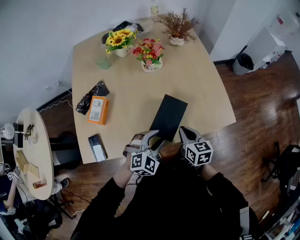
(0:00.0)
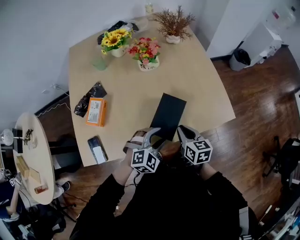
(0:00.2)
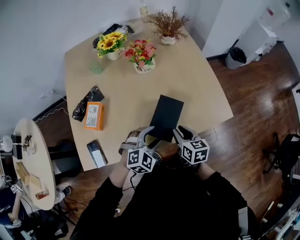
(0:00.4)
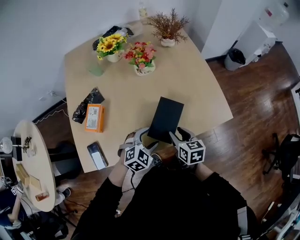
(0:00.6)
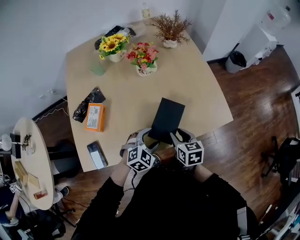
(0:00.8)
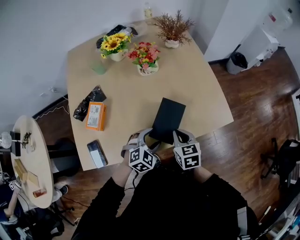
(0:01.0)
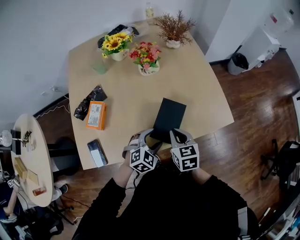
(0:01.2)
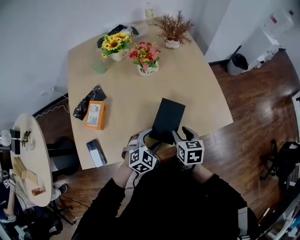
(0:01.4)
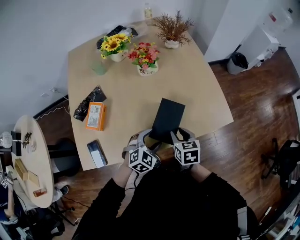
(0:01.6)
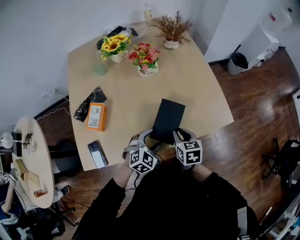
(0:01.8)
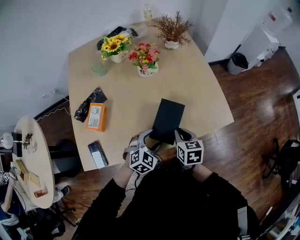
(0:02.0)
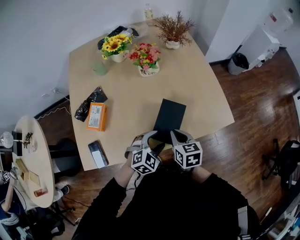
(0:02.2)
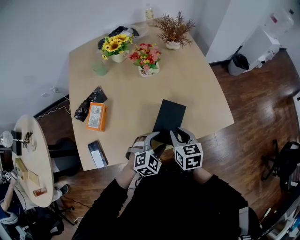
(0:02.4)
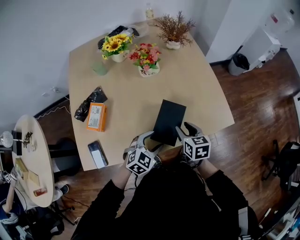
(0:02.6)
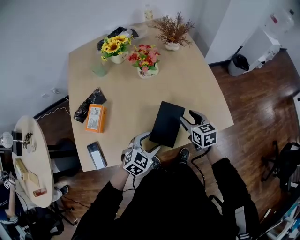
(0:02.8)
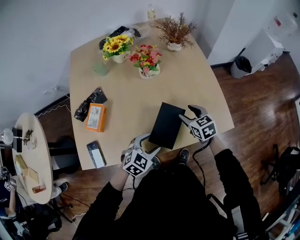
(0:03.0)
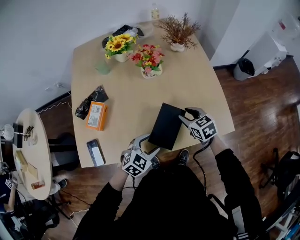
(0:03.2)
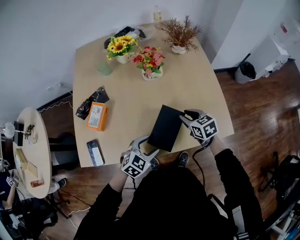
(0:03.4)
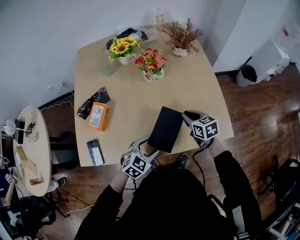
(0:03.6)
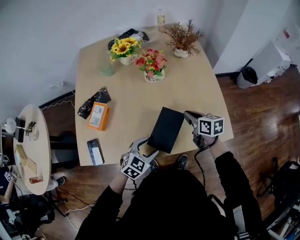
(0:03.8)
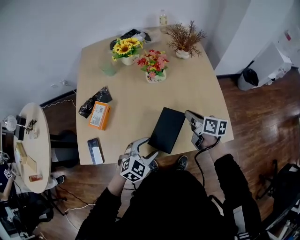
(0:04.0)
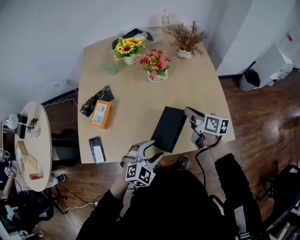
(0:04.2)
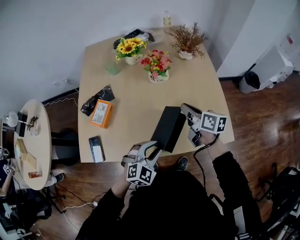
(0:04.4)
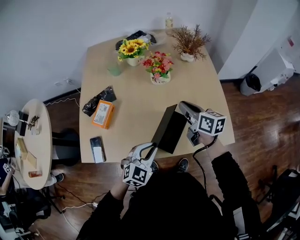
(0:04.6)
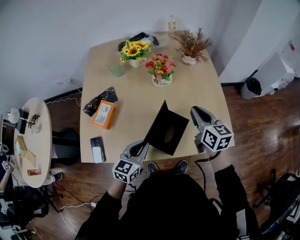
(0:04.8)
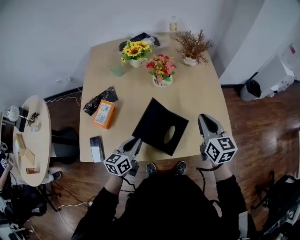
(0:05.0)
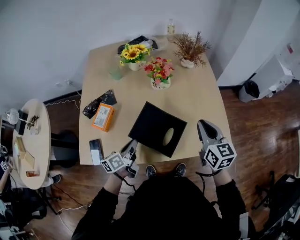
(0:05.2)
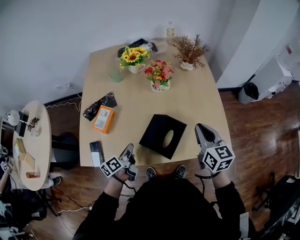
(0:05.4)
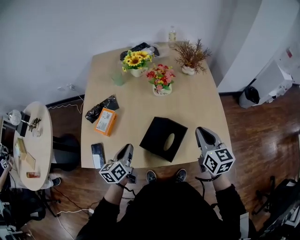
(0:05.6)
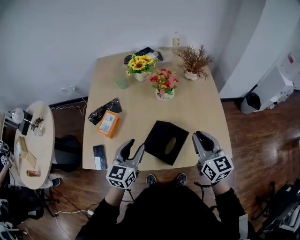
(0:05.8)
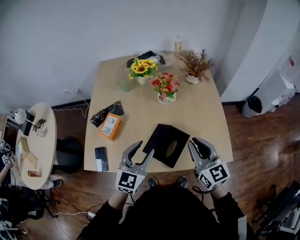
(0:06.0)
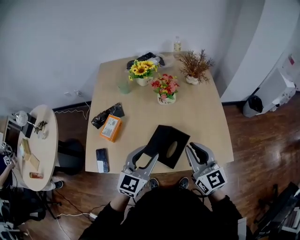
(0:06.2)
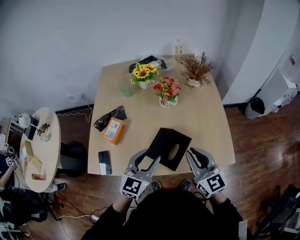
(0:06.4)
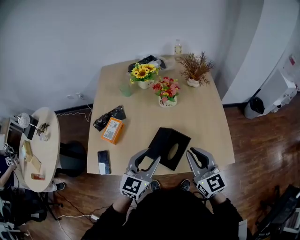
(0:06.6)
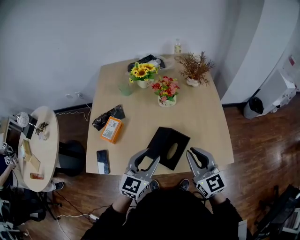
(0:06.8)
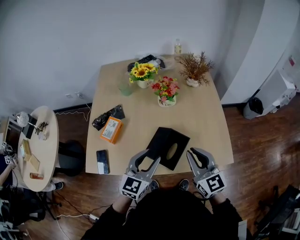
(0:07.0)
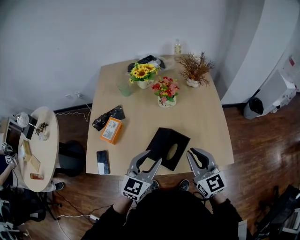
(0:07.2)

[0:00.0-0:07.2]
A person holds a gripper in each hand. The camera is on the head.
0:00.0 to 0:01.4: The left gripper opens; the right gripper opens.
0:01.4 to 0:02.8: The right gripper goes some 10 cm forward, and closes, then opens again.
0:02.8 to 0:04.4: The right gripper shifts some 10 cm upward and forward, rotates roughly 30 degrees, and closes up; the left gripper ends up roughly 5 cm from where it was, and closes.
0:04.4 to 0:05.8: The left gripper moves to the left, upward and forward, about 15 cm, twists approximately 40 degrees counterclockwise, seen from behind, and closes, then opens again, while the right gripper moves upward and backward, some 15 cm, and changes its angle by approximately 40 degrees.
0:05.8 to 0:07.2: The right gripper moves roughly 5 cm. Meanwhile the left gripper goes roughly 5 cm to the right.

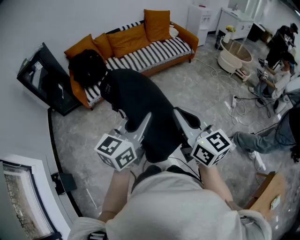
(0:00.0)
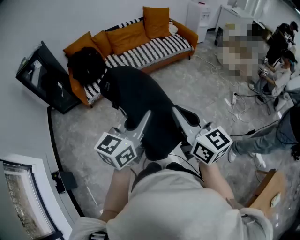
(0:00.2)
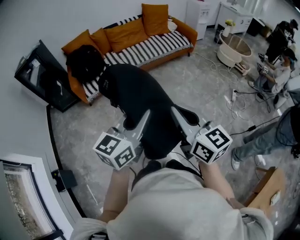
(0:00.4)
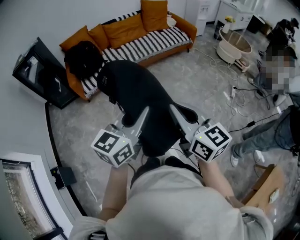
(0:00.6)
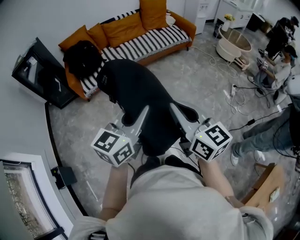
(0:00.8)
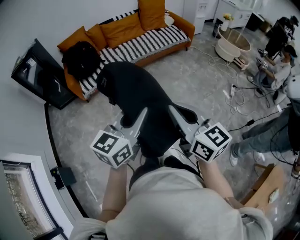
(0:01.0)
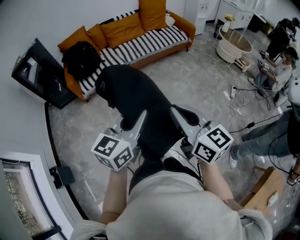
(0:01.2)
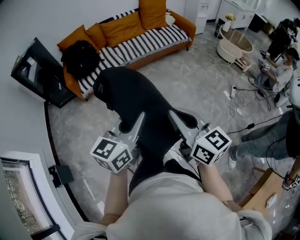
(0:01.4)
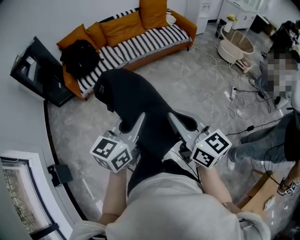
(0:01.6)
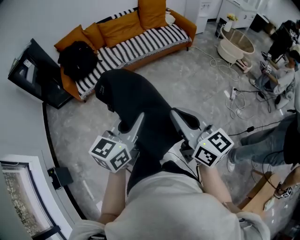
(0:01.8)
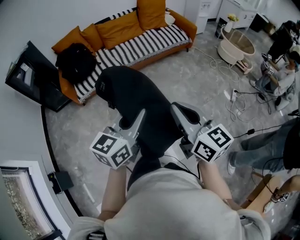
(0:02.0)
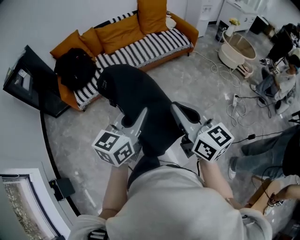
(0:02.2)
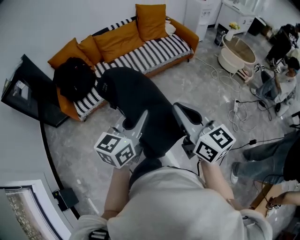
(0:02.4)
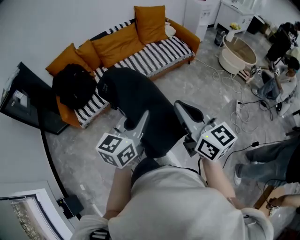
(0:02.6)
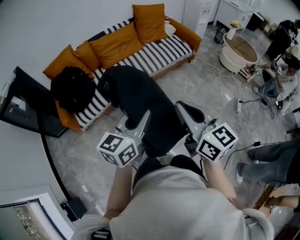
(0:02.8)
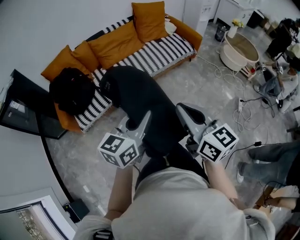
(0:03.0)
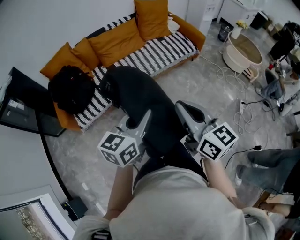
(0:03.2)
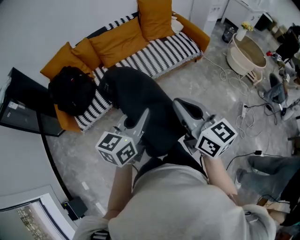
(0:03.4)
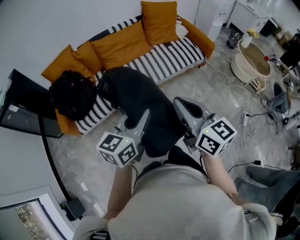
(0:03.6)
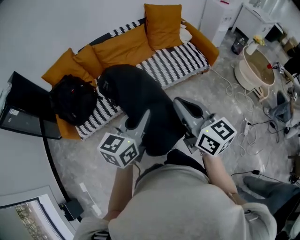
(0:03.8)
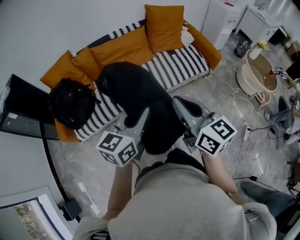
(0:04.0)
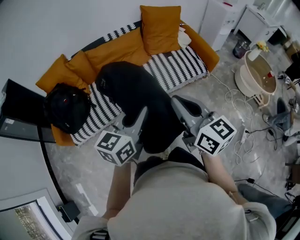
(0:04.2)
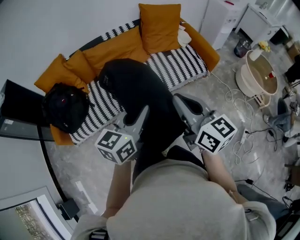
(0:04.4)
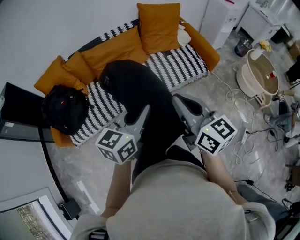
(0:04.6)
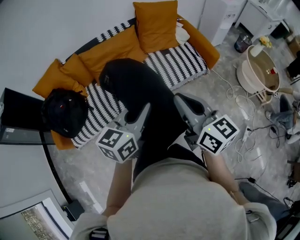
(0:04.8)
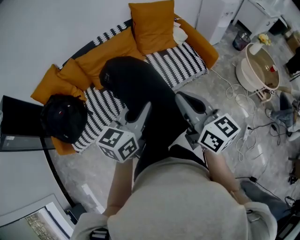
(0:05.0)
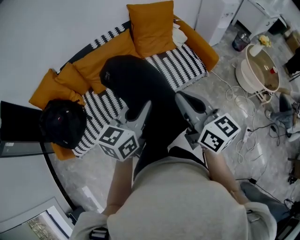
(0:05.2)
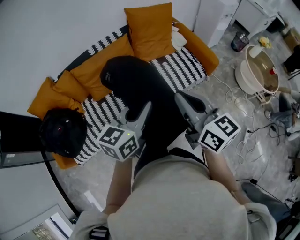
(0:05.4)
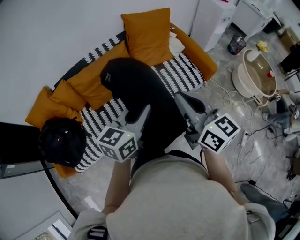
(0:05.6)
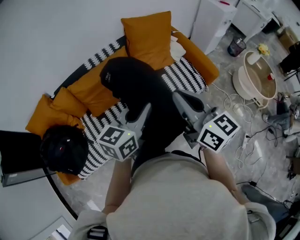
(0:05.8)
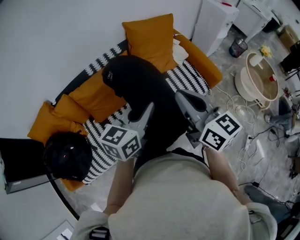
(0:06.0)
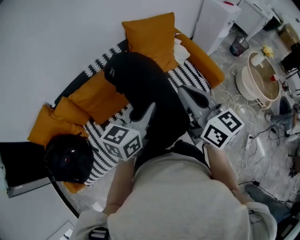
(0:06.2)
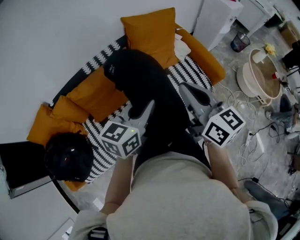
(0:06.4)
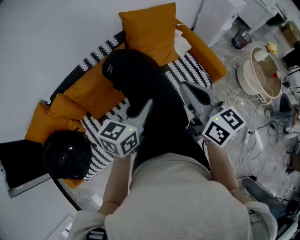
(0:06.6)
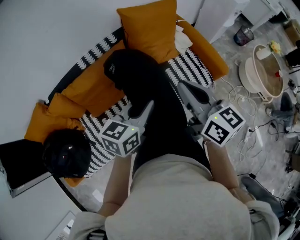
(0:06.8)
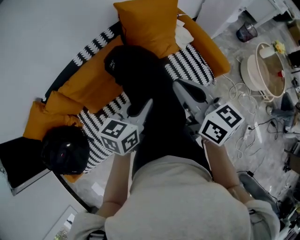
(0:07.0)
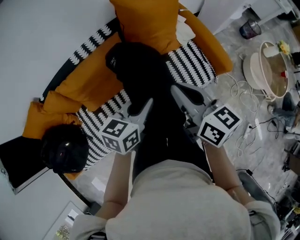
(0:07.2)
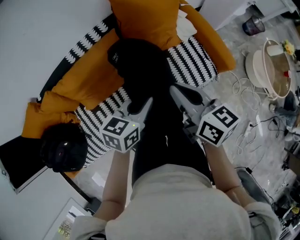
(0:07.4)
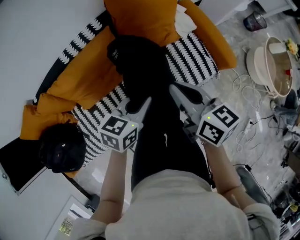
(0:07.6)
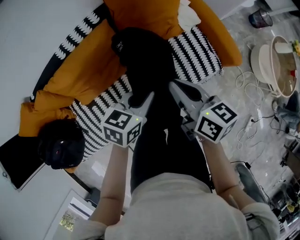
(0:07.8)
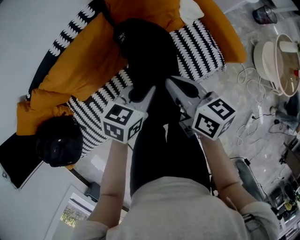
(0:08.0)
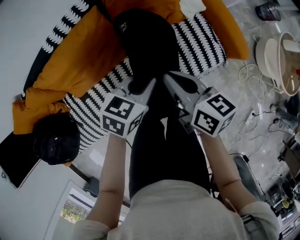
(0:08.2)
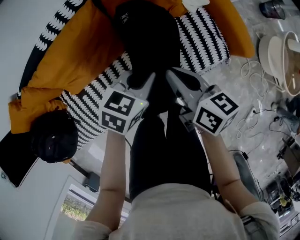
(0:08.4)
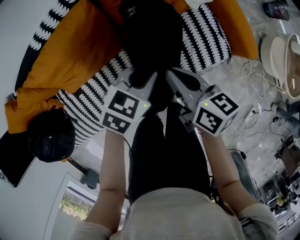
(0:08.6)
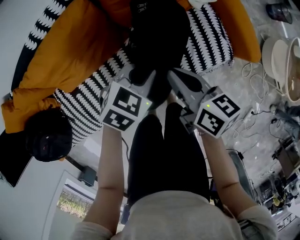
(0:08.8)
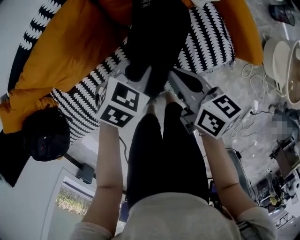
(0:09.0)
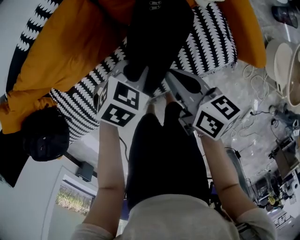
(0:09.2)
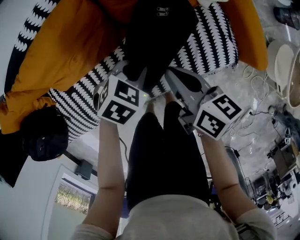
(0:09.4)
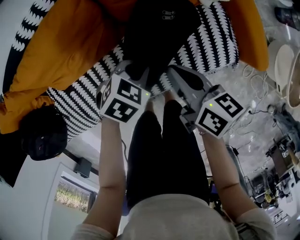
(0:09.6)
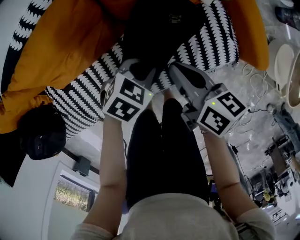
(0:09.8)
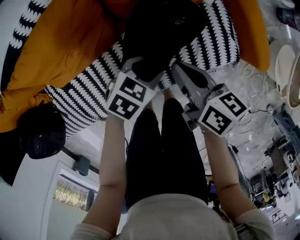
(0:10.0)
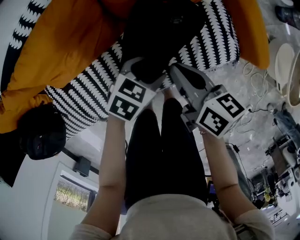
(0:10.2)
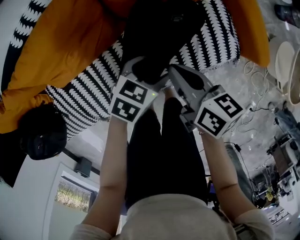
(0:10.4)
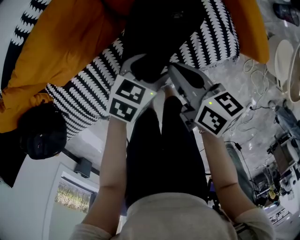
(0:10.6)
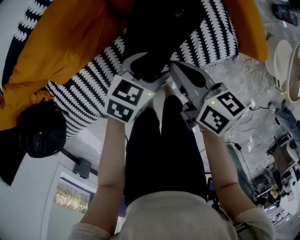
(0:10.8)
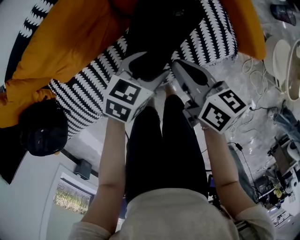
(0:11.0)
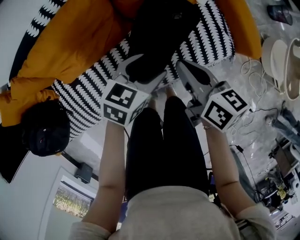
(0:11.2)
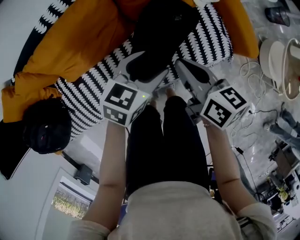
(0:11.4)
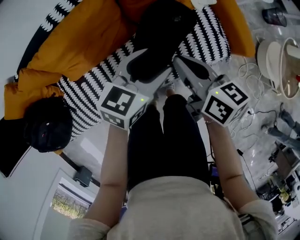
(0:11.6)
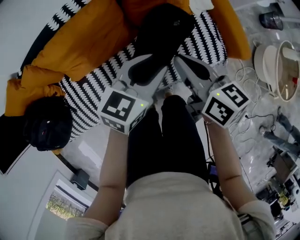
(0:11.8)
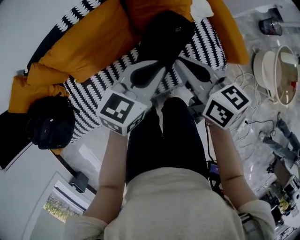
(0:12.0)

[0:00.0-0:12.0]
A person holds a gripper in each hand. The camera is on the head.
0:00.0 to 0:01.6: Both grippers move to the right, roughly 5 cm.
0:01.6 to 0:03.0: The two grippers travel together, forward, about 40 cm.
0:03.0 to 0:04.4: The pair of grippers is taken forward, about 40 cm.
0:04.4 to 0:06.0: The grippers both shift forward by roughly 35 cm.
0:06.0 to 0:07.6: The left gripper is displaced downward and forward by some 25 cm, and changes its angle by about 20 degrees. The right gripper heads forward and downward, covering approximately 25 cm, and changes its angle by approximately 20 degrees.
0:07.6 to 0:09.0: The right gripper moves downward, about 25 cm. The left gripper goes some 25 cm downward and forward, and turns by approximately 30 degrees.
0:09.0 to 0:10.4: The left gripper heads downward, covering about 5 cm, and opens its fingers.
0:10.4 to 0:12.0: The grippers both shift upward by approximately 30 cm. The left gripper rotates about 30 degrees, and closes its fingers, while the right gripper changes its angle by about 20 degrees.

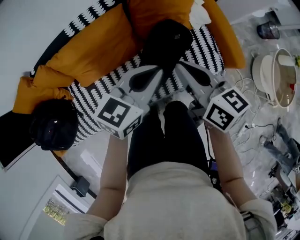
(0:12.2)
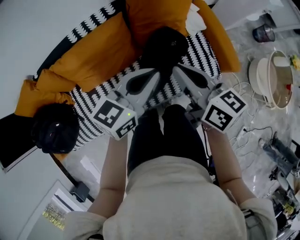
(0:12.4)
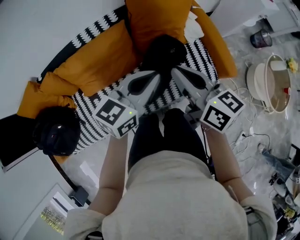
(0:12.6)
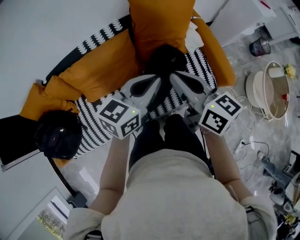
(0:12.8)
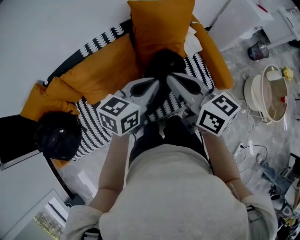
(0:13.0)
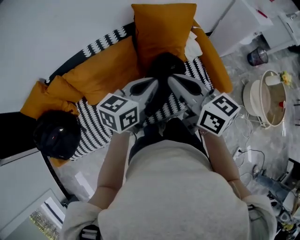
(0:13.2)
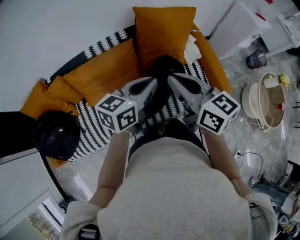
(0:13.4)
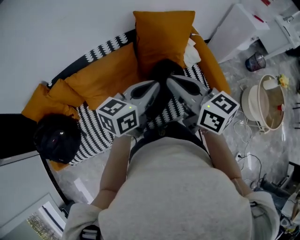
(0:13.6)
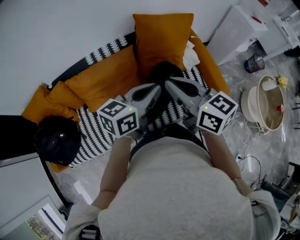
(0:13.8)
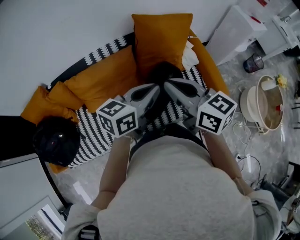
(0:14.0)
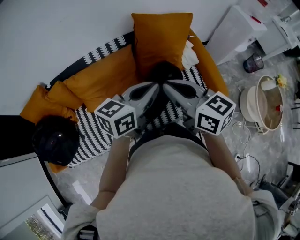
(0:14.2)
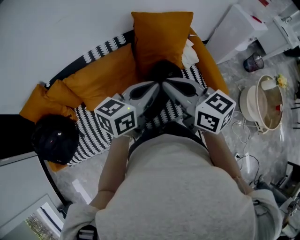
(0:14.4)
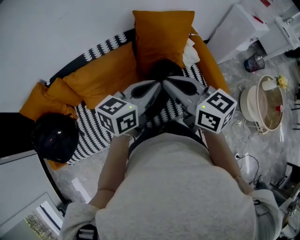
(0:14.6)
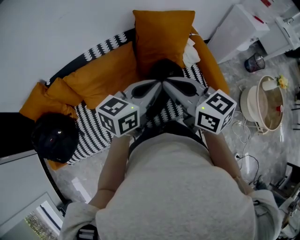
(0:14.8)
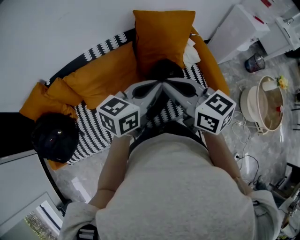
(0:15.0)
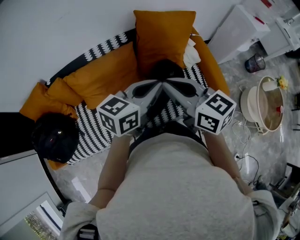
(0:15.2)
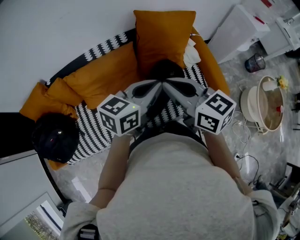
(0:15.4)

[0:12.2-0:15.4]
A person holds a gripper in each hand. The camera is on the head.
0:12.2 to 0:13.8: The grippers both shift upward by some 15 cm.
0:13.8 to 0:15.4: There are only small adjustments of the grippers.

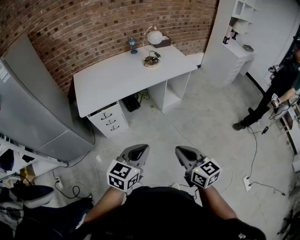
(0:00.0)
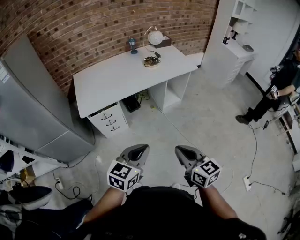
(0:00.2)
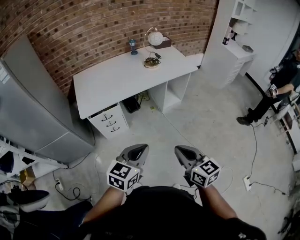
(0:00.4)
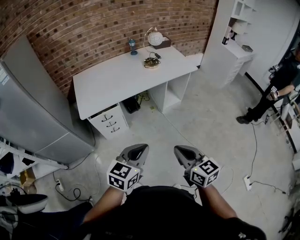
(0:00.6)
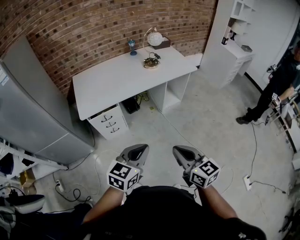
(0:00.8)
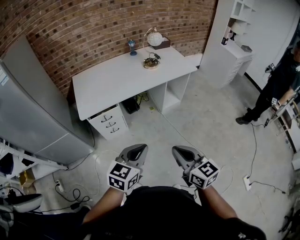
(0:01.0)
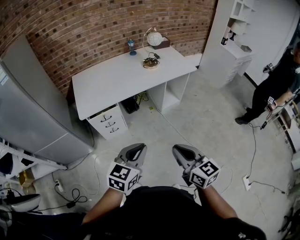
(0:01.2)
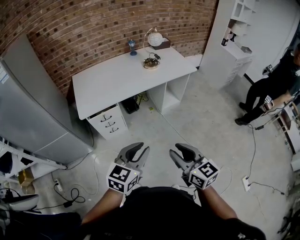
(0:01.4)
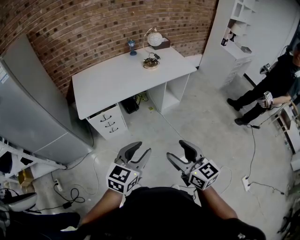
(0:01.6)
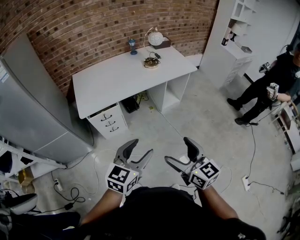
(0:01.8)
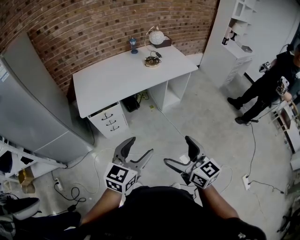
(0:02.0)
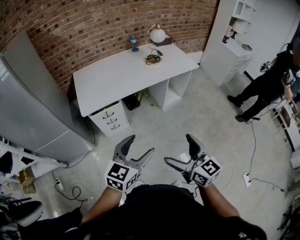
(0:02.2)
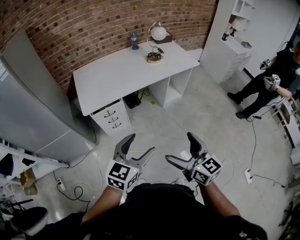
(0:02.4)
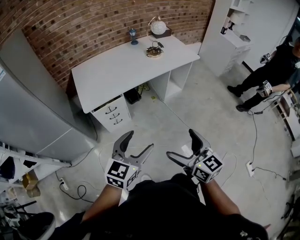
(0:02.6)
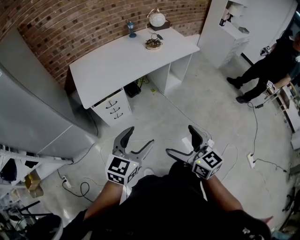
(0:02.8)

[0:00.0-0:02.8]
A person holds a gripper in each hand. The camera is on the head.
0:00.0 to 0:01.4: The grippers stay close to where they were, moving slightly.
0:01.4 to 0:02.8: Both grippers move to the left, some 10 cm. The left gripper opens, while the right gripper opens up.
